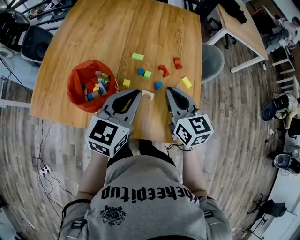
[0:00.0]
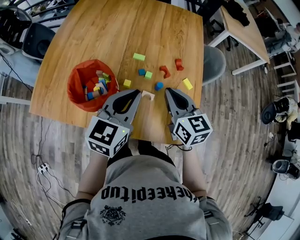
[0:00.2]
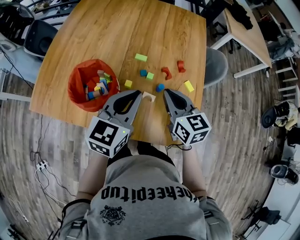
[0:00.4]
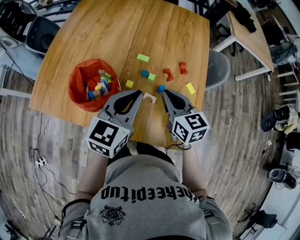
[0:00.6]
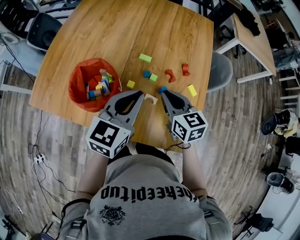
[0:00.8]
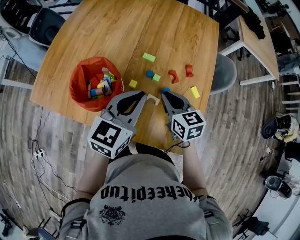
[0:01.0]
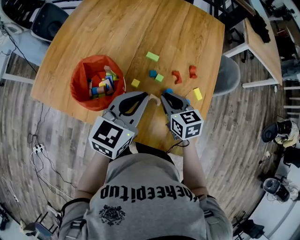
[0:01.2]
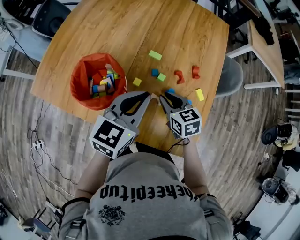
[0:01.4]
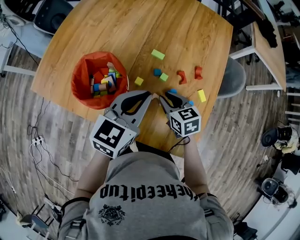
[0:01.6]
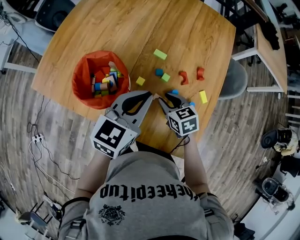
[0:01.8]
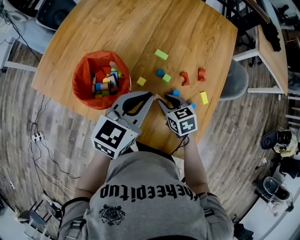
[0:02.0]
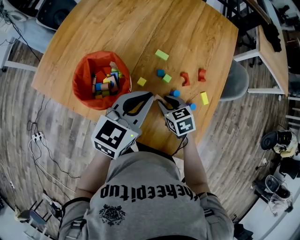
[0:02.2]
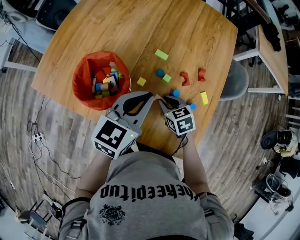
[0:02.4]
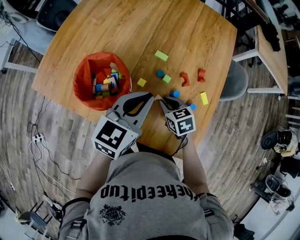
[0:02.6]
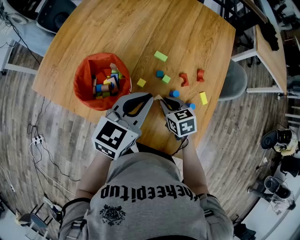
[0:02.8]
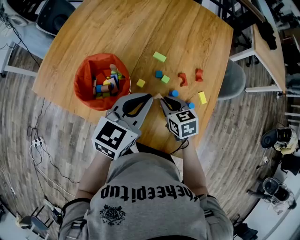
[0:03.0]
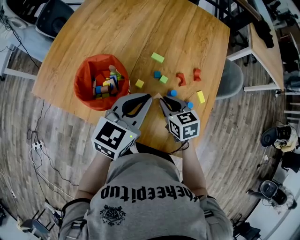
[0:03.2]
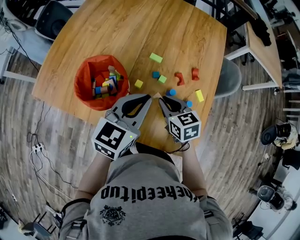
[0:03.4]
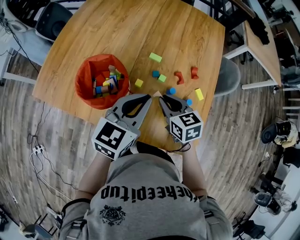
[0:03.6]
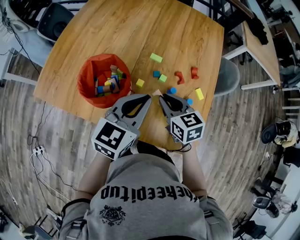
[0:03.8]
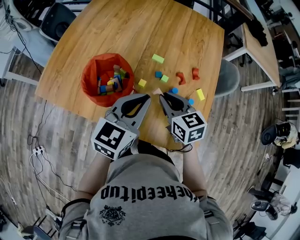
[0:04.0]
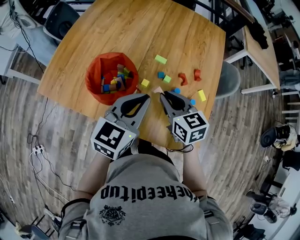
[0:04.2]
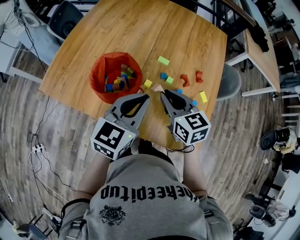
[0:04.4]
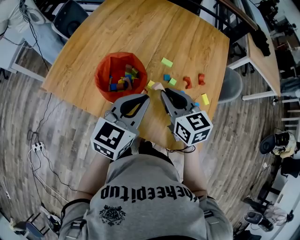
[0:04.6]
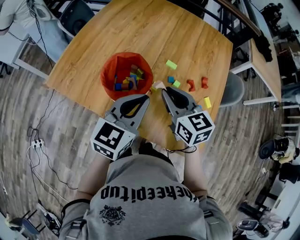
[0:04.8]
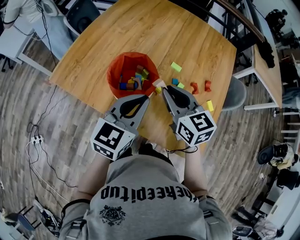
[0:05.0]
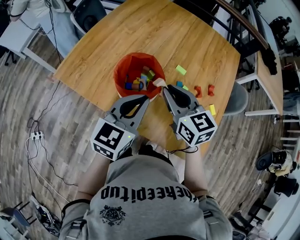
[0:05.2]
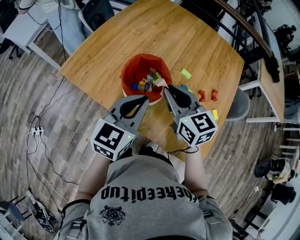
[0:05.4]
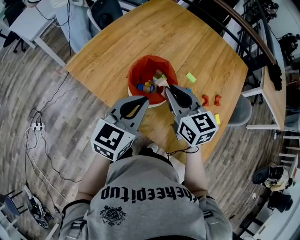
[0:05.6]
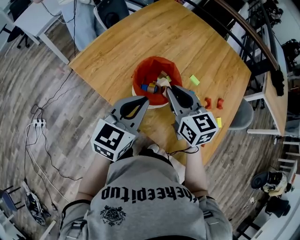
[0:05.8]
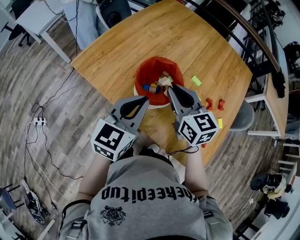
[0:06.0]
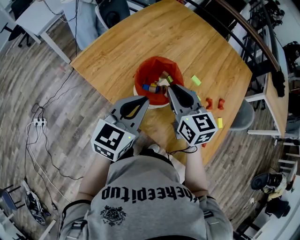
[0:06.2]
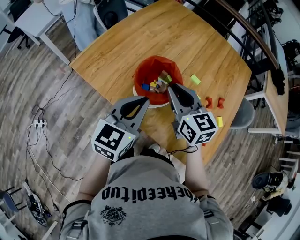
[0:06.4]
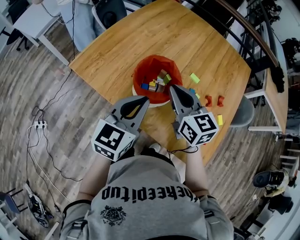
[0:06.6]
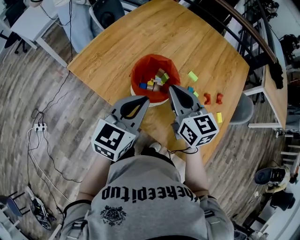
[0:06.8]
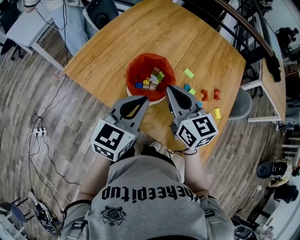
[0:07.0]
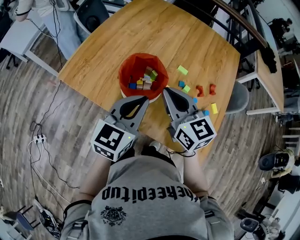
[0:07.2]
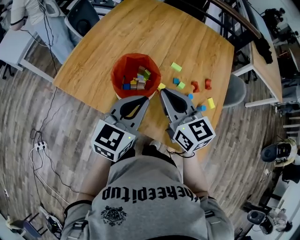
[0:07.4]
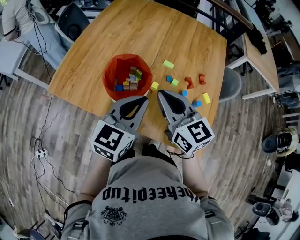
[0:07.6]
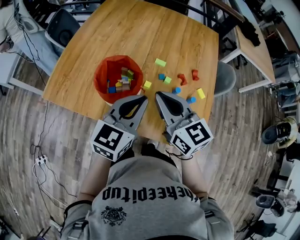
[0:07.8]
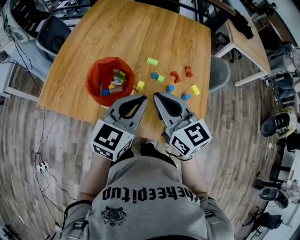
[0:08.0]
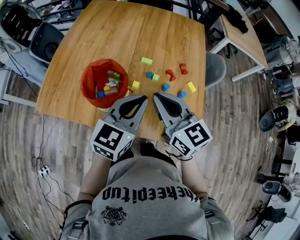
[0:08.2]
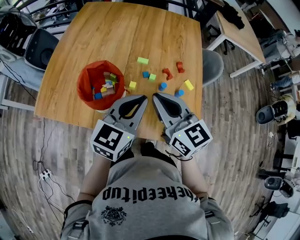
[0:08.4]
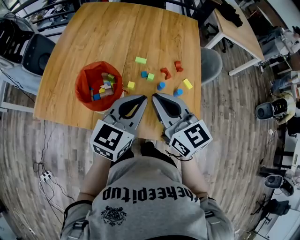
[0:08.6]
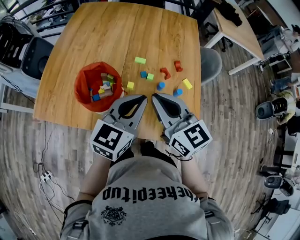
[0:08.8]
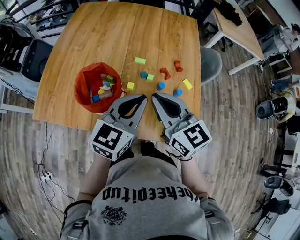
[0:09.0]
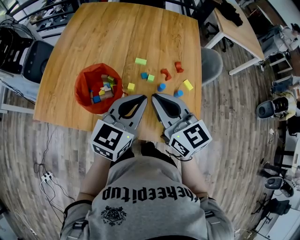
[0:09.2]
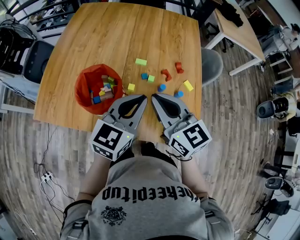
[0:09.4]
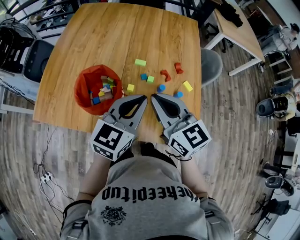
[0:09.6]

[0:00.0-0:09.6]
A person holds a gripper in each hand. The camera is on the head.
0:00.0 to 0:01.6: The right gripper heads downward, covering about 15 cm, swivels approximately 30 degrees, and opens its fingers.
0:01.6 to 0:03.2: The grippers make only small movements.
0:03.2 to 0:04.8: The right gripper moves upward and to the left, about 15 cm, and rotates about 20 degrees. The left gripper heads to the left, covering approximately 10 cm.
0:04.8 to 0:06.4: Both grippers travel together to the left, approximately 10 cm.
0:06.4 to 0:08.0: The right gripper goes roughly 10 cm to the right and backward. The left gripper is displaced to the right by some 15 cm, and turns by roughly 20 degrees.
0:08.0 to 0:09.6: The grippers make only small movements.

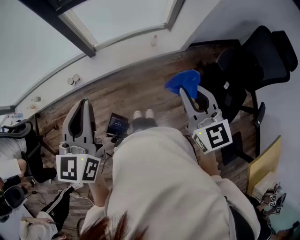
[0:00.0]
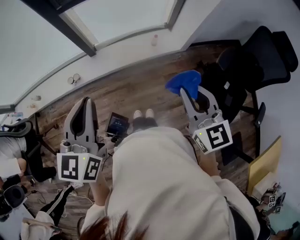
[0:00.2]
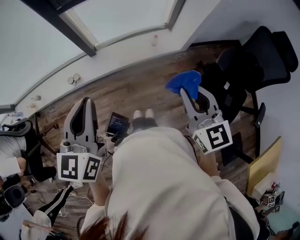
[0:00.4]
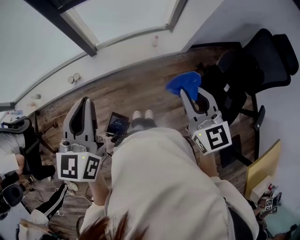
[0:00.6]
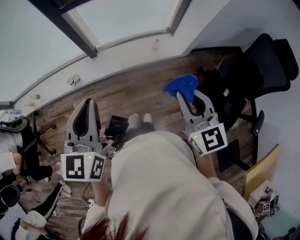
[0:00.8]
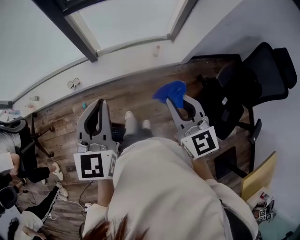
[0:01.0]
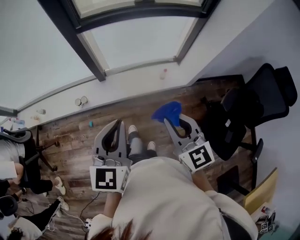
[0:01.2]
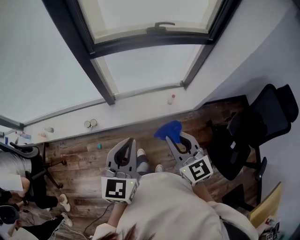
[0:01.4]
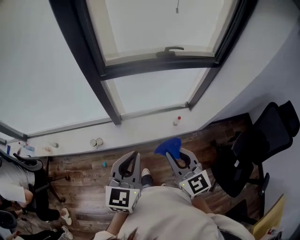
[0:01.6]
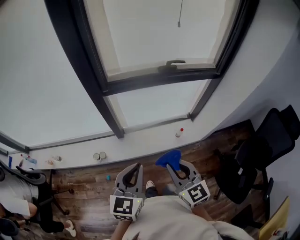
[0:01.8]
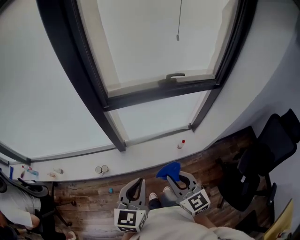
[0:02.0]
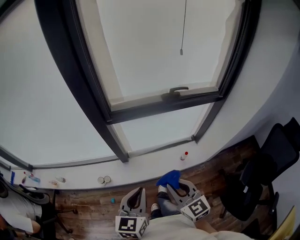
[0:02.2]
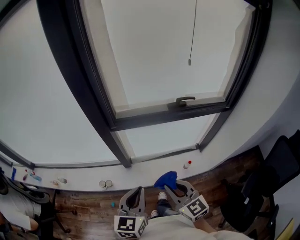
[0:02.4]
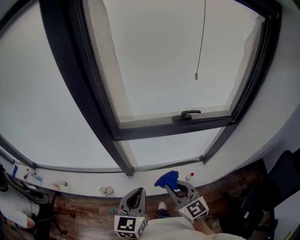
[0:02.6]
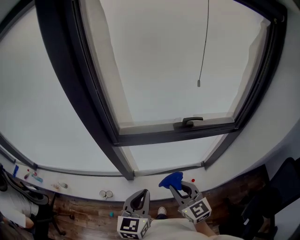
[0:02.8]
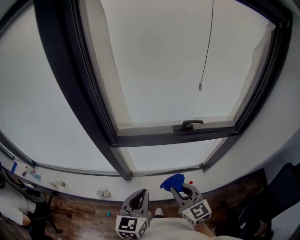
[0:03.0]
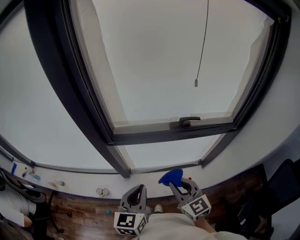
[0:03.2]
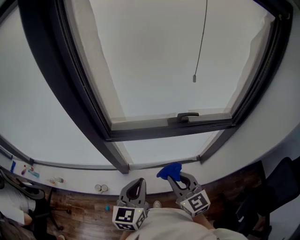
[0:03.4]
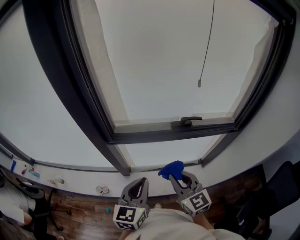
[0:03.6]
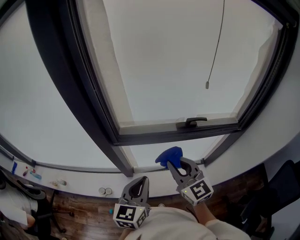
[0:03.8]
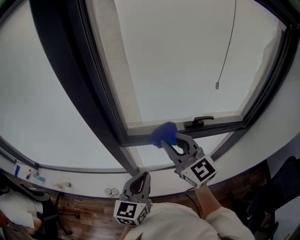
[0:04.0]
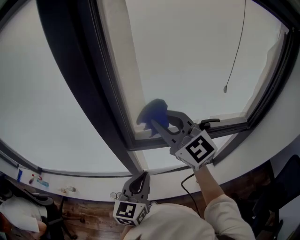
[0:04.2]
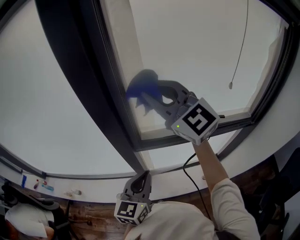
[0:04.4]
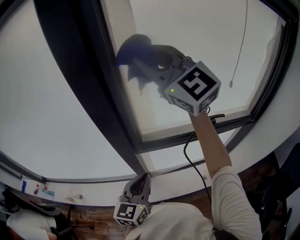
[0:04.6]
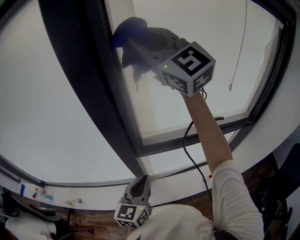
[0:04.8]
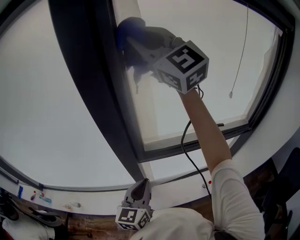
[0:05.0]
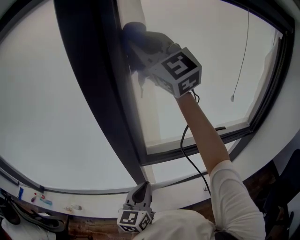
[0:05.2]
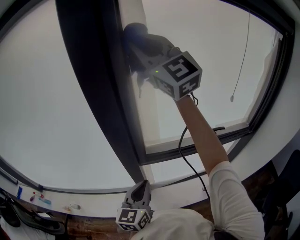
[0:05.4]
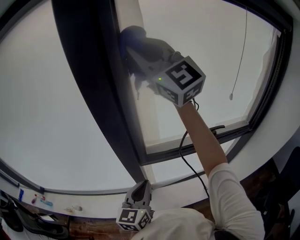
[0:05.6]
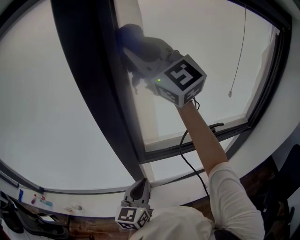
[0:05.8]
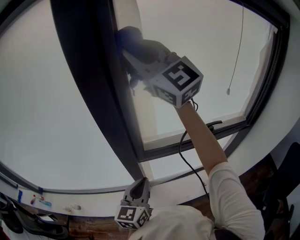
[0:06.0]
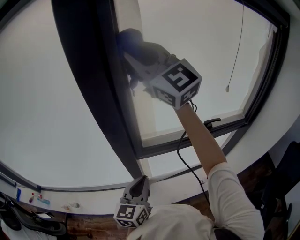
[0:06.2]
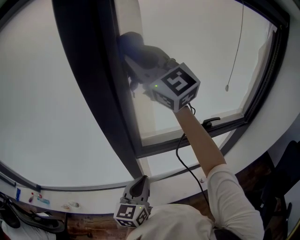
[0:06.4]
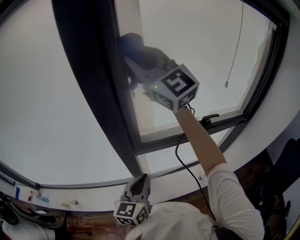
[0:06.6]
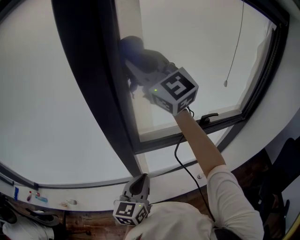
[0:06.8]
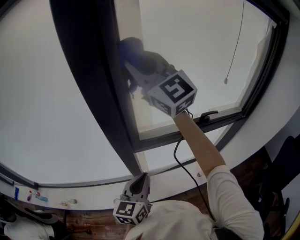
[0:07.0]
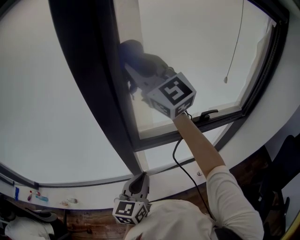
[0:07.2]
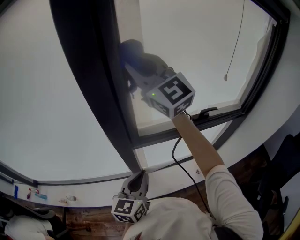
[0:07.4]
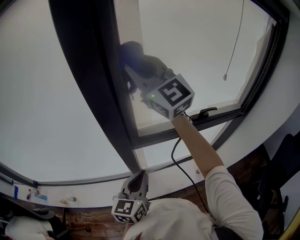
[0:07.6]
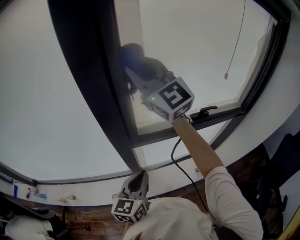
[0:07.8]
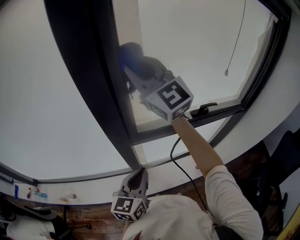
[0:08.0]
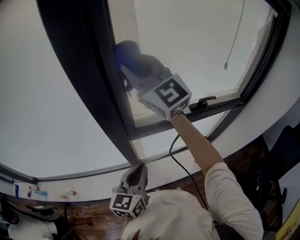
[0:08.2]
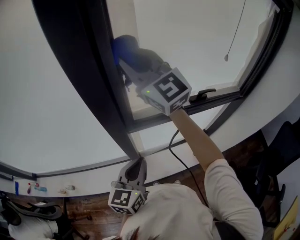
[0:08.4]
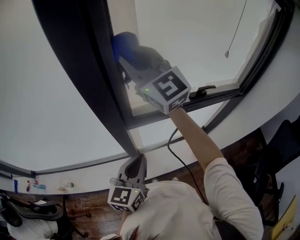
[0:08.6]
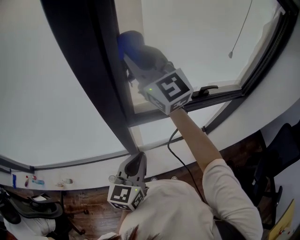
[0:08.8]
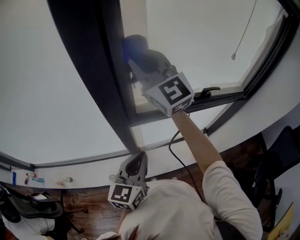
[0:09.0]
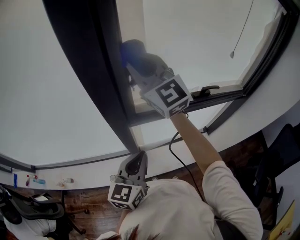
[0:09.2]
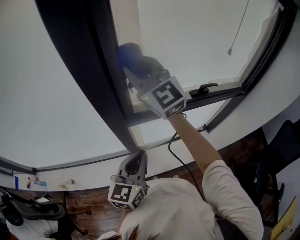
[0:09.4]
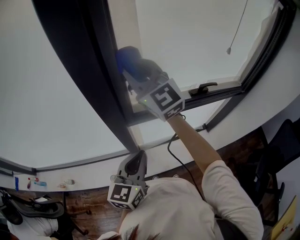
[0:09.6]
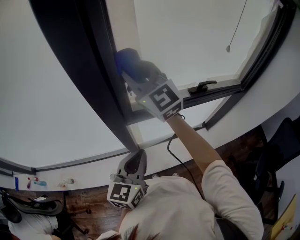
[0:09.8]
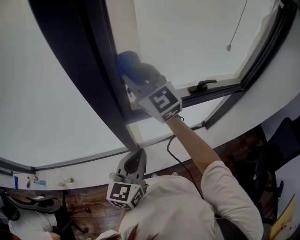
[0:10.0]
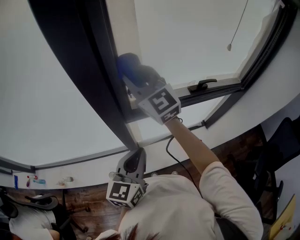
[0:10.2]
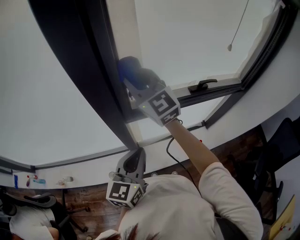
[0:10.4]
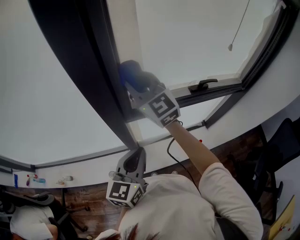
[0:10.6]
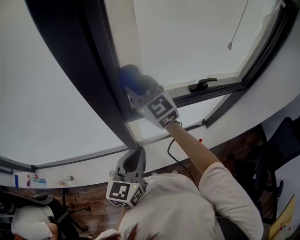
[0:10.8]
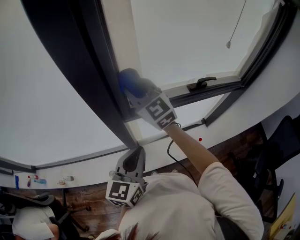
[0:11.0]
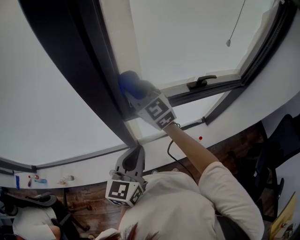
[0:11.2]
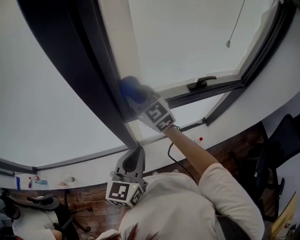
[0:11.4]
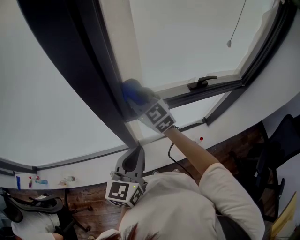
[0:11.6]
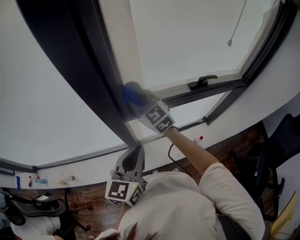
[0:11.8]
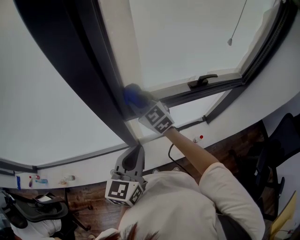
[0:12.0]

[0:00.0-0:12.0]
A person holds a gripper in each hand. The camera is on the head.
0:00.0 to 0:01.6: The right gripper moves forward and to the left, roughly 20 cm. The left gripper goes approximately 15 cm forward.
0:01.6 to 0:03.0: The two grippers go roughly 20 cm forward.
0:03.0 to 0:04.4: The right gripper shifts approximately 40 cm upward, forward and to the left, and swivels roughly 40 degrees; the left gripper moves forward and to the left, approximately 15 cm.
0:04.4 to 0:06.0: The right gripper moves upward and forward, some 15 cm.
0:06.0 to 0:07.6: The right gripper is displaced downward by approximately 10 cm.
0:07.6 to 0:09.0: The right gripper goes about 10 cm downward.
0:09.0 to 0:10.4: The right gripper heads downward, covering roughly 10 cm.
0:10.4 to 0:12.0: The right gripper shifts roughly 15 cm downward.

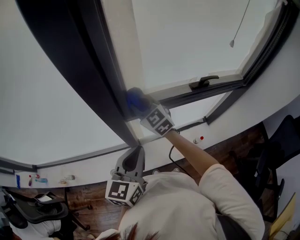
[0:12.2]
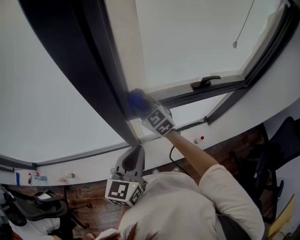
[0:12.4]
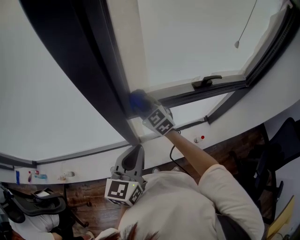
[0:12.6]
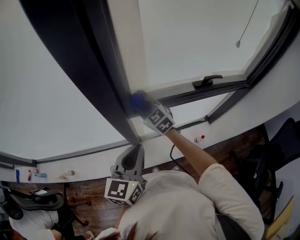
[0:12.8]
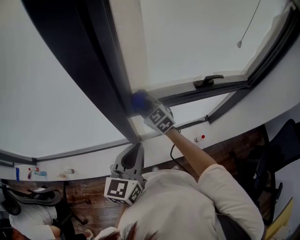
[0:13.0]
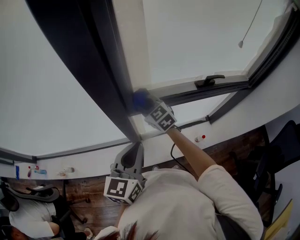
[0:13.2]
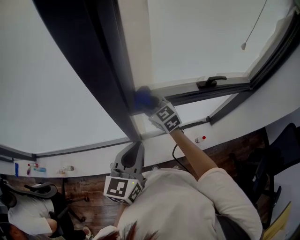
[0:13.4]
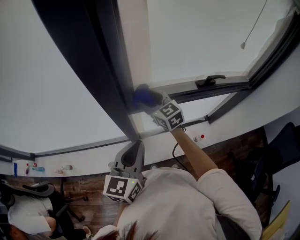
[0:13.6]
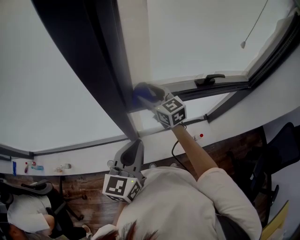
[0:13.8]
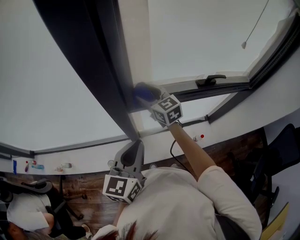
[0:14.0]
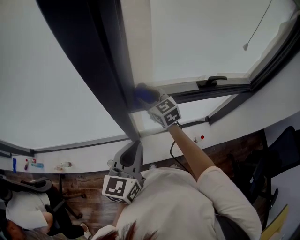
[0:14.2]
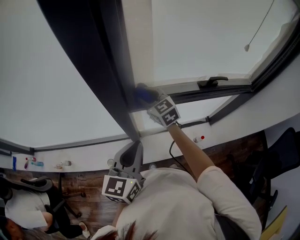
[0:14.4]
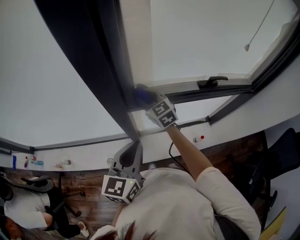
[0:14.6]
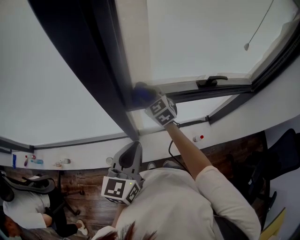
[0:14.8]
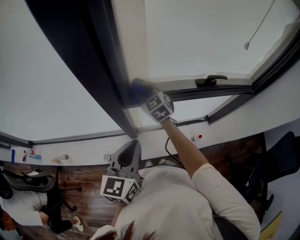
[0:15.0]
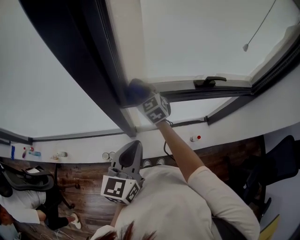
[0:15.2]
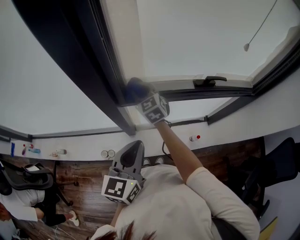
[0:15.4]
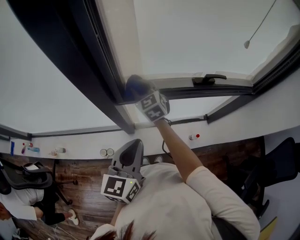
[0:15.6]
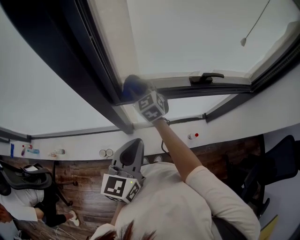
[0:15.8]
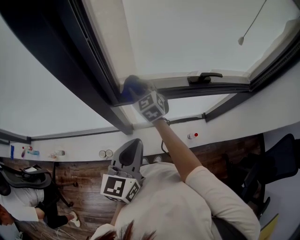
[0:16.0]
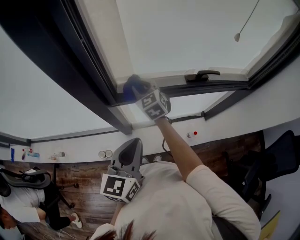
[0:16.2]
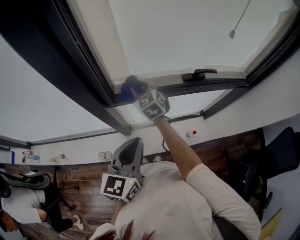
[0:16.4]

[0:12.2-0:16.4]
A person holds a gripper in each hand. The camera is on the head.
0:12.2 to 0:13.6: The right gripper opens up.
0:13.6 to 0:15.0: The right gripper closes its fingers.
0:15.0 to 0:16.4: The grippers both shift to the right by about 5 cm.
